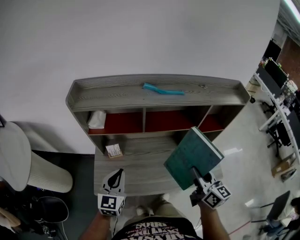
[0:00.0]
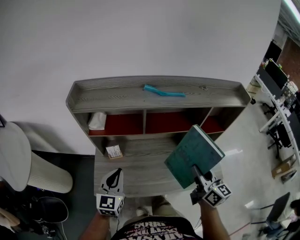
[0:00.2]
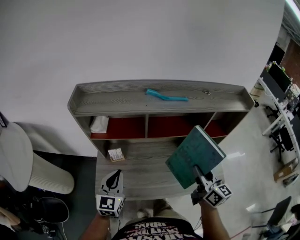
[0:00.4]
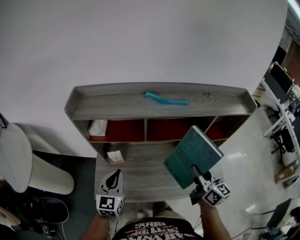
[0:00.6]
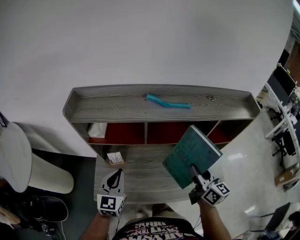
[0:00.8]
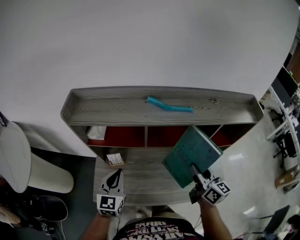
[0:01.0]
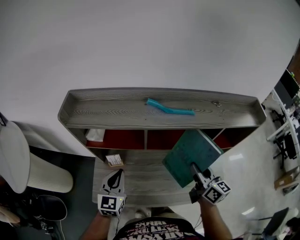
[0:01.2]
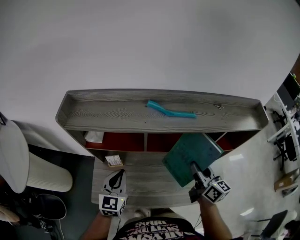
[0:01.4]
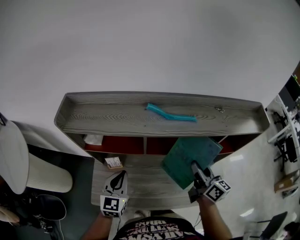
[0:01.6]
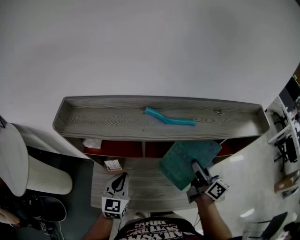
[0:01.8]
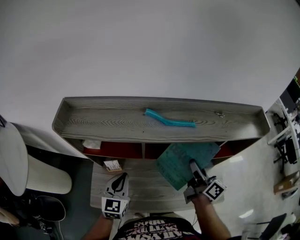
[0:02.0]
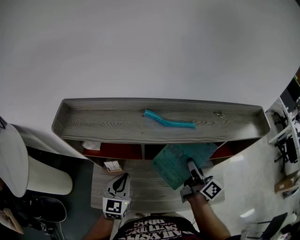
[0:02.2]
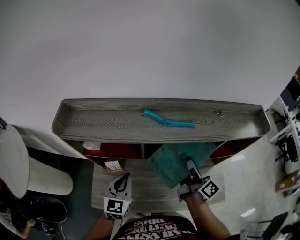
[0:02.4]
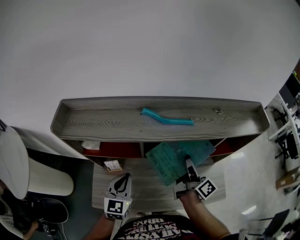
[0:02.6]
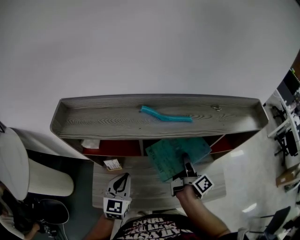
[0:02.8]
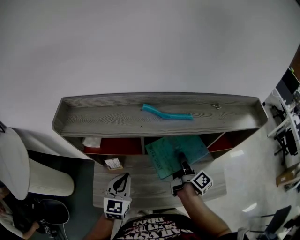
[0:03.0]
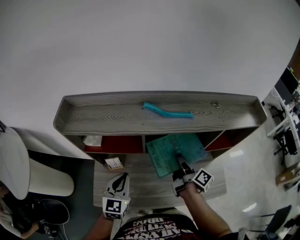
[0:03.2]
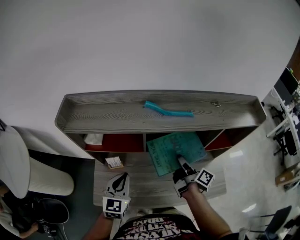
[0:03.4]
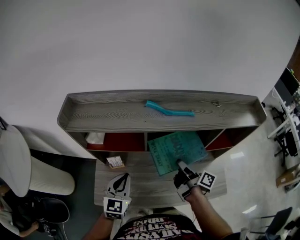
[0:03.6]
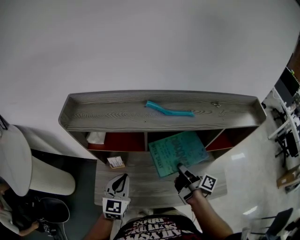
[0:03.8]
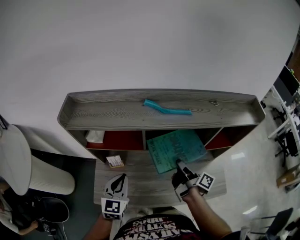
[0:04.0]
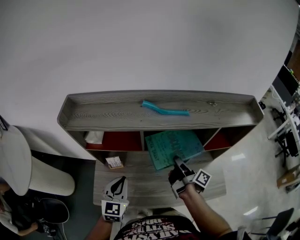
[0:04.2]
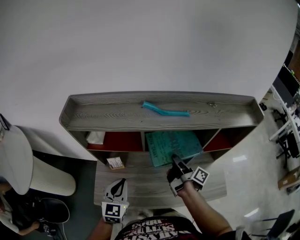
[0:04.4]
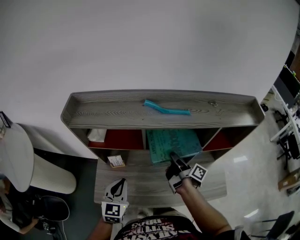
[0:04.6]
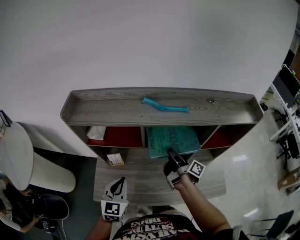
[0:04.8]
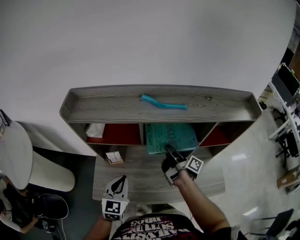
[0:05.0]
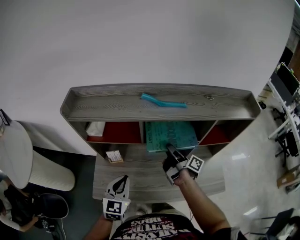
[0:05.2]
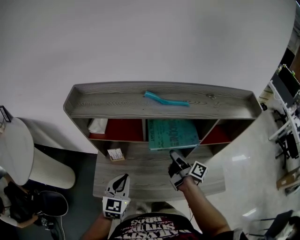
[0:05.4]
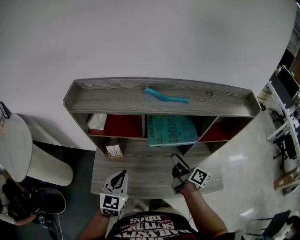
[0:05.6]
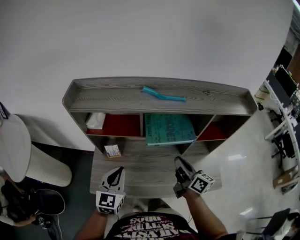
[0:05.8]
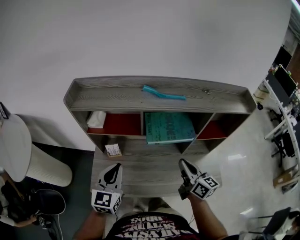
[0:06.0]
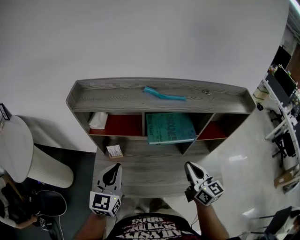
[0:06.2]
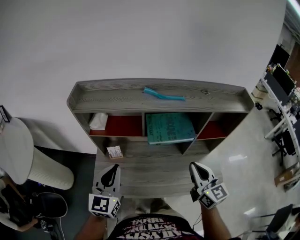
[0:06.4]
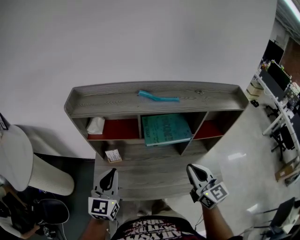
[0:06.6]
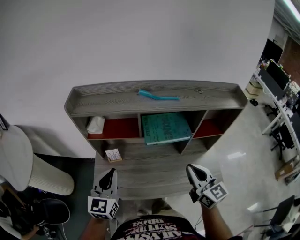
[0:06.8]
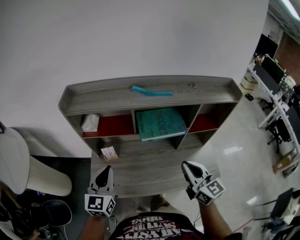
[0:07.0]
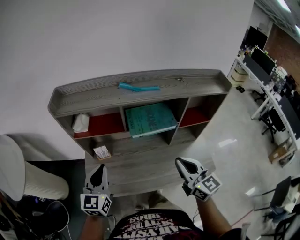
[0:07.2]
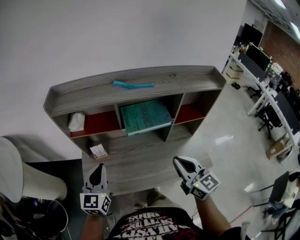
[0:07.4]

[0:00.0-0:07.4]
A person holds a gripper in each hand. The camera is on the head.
0:00.0 to 0:01.4: The left gripper heads forward, covering some 10 cm; the right gripper heads forward, covering about 15 cm.
0:01.4 to 0:03.0: The right gripper moves downward, some 5 cm, and twists about 40 degrees clockwise, seen from behind.
0:03.0 to 0:04.4: The right gripper turns by some 20 degrees.
0:04.4 to 0:06.0: The left gripper shifts approximately 5 cm upward, while the right gripper goes about 15 cm backward and upward, rotates around the line of its fingers by approximately 60 degrees, counterclockwise from behind, and closes.
0:06.0 to 0:07.4: The right gripper goes roughly 10 cm backward and upward, and turns by roughly 20 degrees.

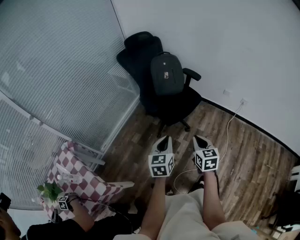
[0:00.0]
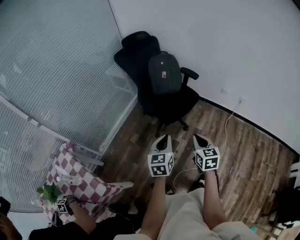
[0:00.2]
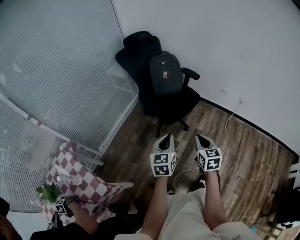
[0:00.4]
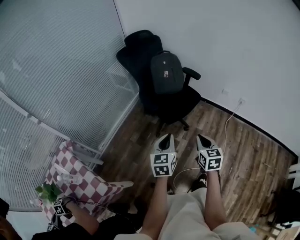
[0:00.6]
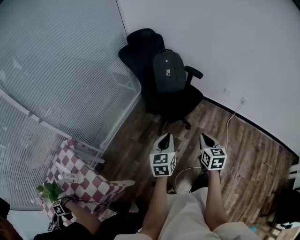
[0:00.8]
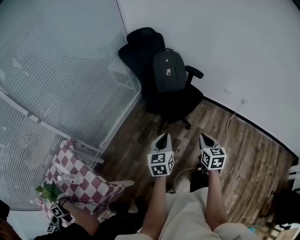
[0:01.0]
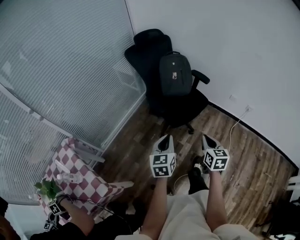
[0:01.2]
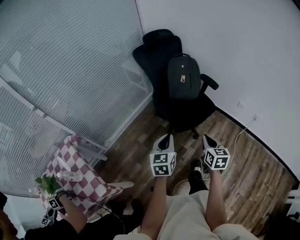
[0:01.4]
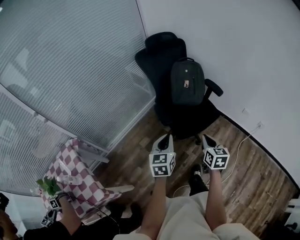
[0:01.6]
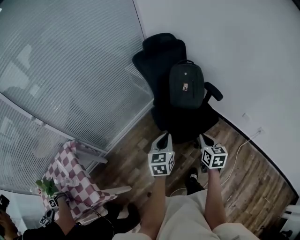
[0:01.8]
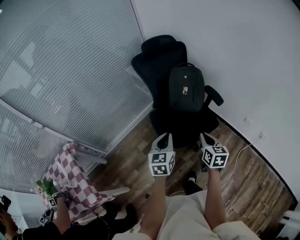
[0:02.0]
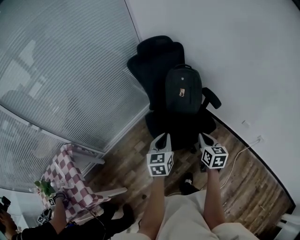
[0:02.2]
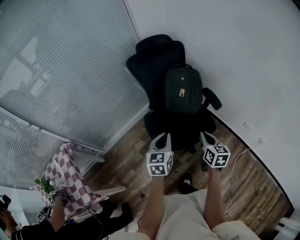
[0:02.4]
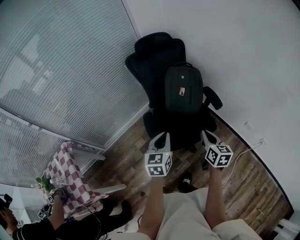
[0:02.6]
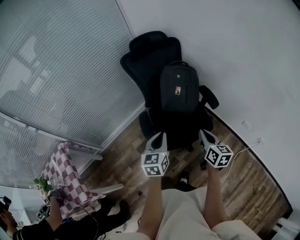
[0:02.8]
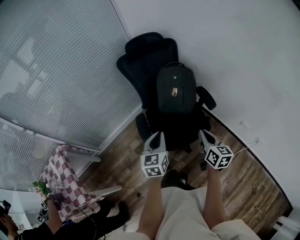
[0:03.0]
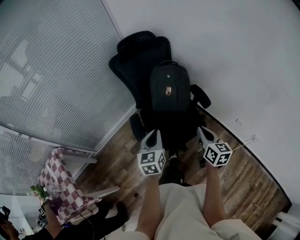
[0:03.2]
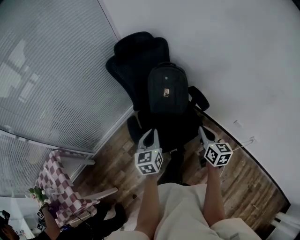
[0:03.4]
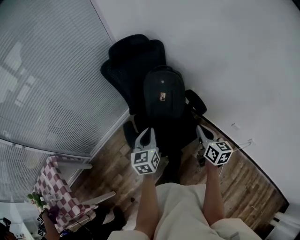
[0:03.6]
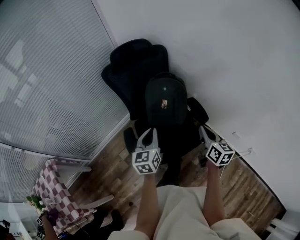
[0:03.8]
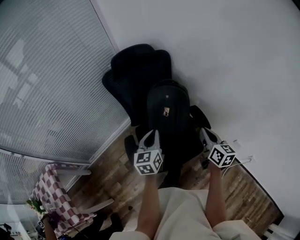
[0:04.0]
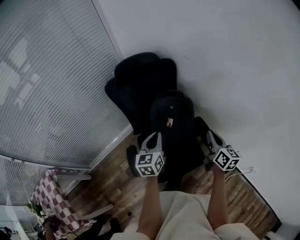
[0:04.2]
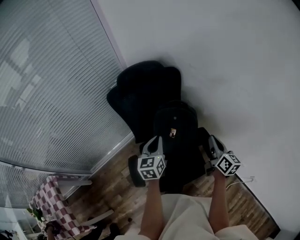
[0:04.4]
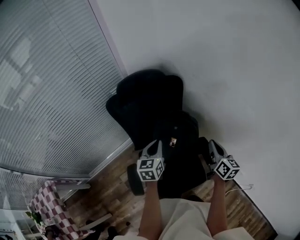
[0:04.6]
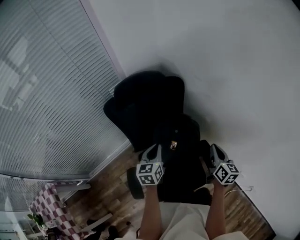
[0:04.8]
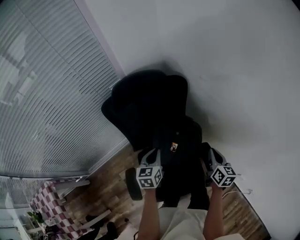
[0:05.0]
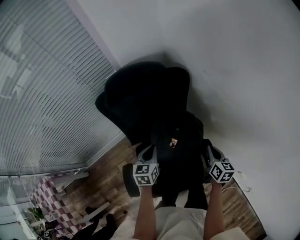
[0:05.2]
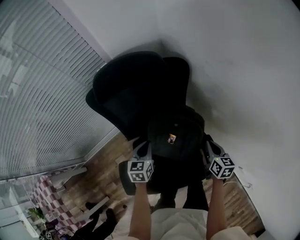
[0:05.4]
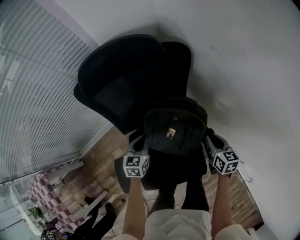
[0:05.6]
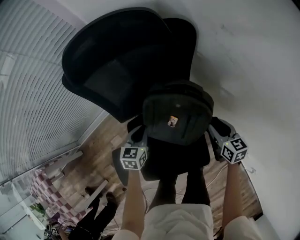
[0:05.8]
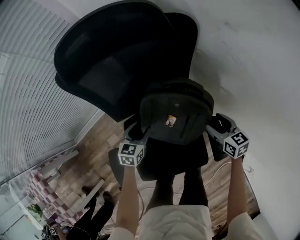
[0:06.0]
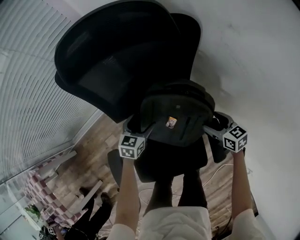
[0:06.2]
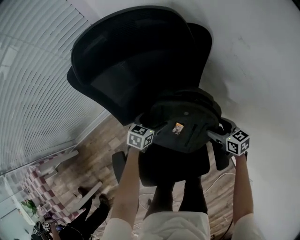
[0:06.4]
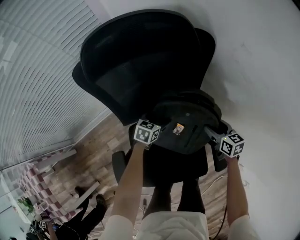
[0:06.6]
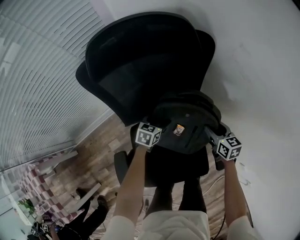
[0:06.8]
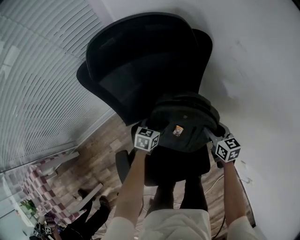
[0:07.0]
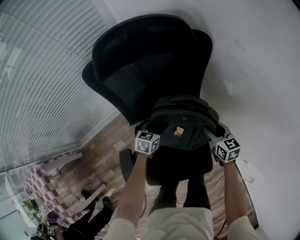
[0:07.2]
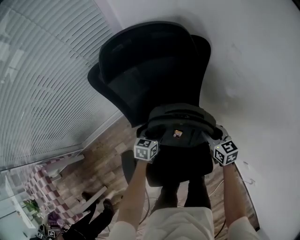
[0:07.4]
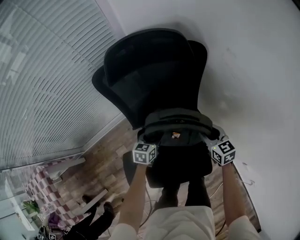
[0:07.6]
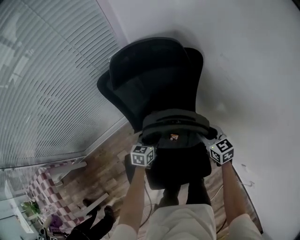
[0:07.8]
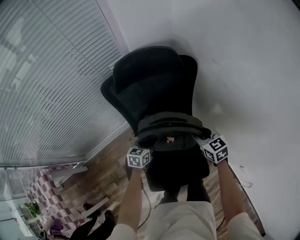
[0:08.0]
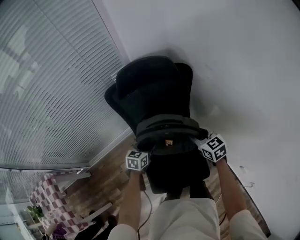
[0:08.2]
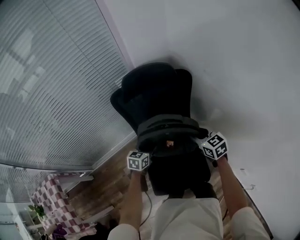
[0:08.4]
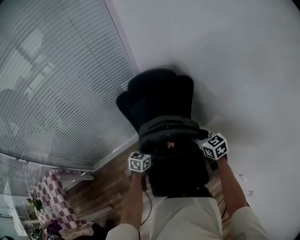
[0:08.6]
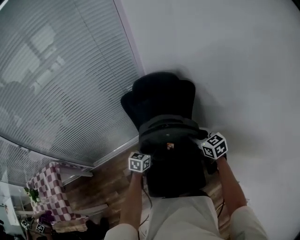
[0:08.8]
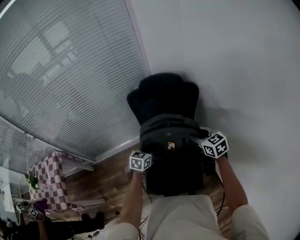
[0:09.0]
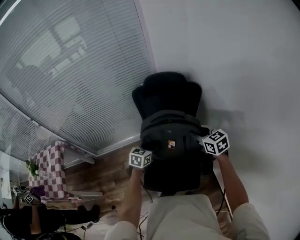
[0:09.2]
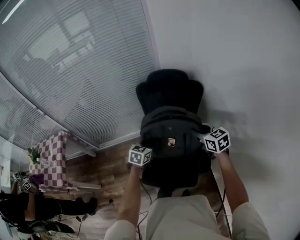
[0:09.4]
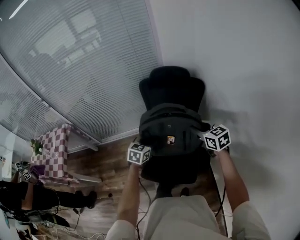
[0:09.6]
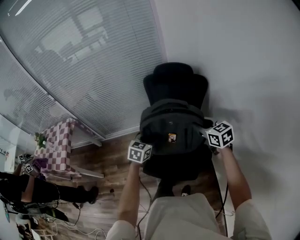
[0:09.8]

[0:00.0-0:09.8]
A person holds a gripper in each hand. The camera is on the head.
0:00.0 to 0:01.4: The right gripper travels forward by approximately 10 cm. Meanwhile the left gripper heads forward and to the left, covering some 10 cm.
0:01.4 to 0:02.8: Both grippers move forward and to the right, some 30 cm. The right gripper rotates roughly 20 degrees.
0:02.8 to 0:04.2: The right gripper heads forward and to the right, covering roughly 30 cm. Meanwhile the left gripper is displaced forward by some 30 cm.
0:04.2 to 0:05.6: Both grippers travel together downward and forward, some 30 cm. The left gripper swivels about 20 degrees, while the right gripper swivels approximately 30 degrees.
0:05.6 to 0:07.0: The right gripper is displaced to the left by about 5 cm, and opens, then closes again. Meanwhile the left gripper shifts some 10 cm downward, and opens up.
0:07.0 to 0:08.4: The left gripper shifts some 25 cm upward and backward. Meanwhile the right gripper goes some 25 cm upward, and changes its angle by some 20 degrees.
0:08.4 to 0:09.8: The right gripper travels upward and backward by about 20 cm, and turns by approximately 20 degrees; the left gripper shifts roughly 25 cm backward and upward, and turns by about 20 degrees.

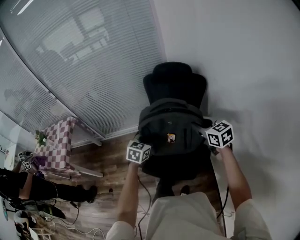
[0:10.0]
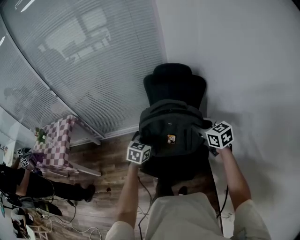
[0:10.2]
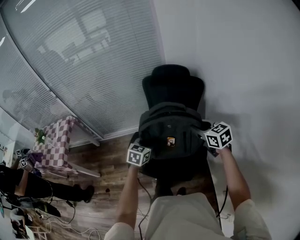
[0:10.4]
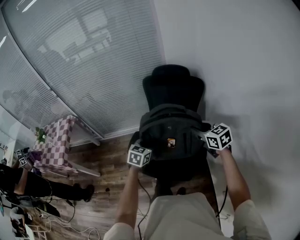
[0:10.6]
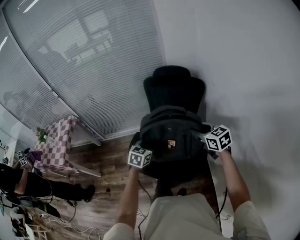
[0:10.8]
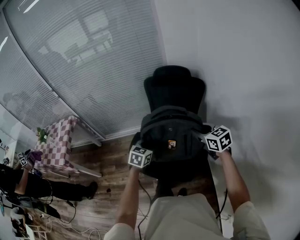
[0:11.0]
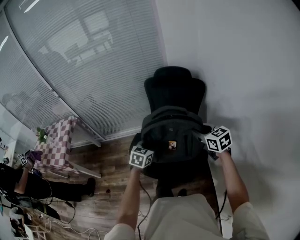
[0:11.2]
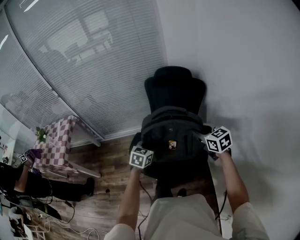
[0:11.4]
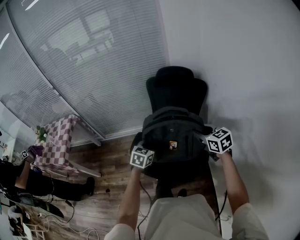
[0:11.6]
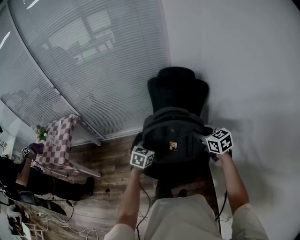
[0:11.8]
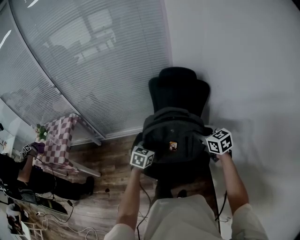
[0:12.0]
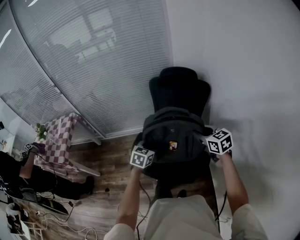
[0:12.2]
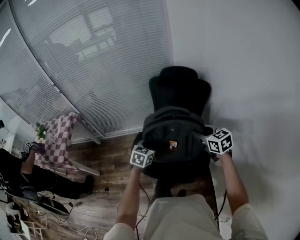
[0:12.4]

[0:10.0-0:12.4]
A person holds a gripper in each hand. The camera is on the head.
0:10.0 to 0:12.4: The grippers make only small movements.

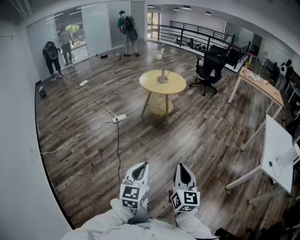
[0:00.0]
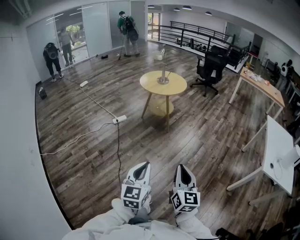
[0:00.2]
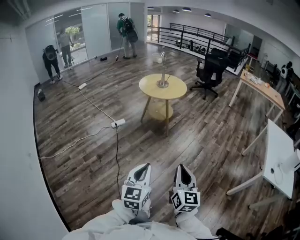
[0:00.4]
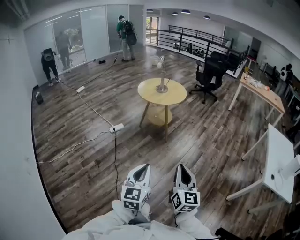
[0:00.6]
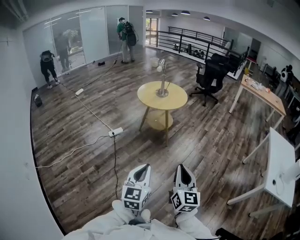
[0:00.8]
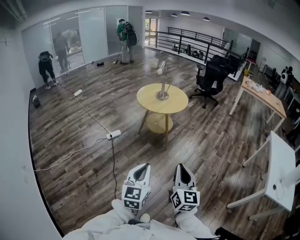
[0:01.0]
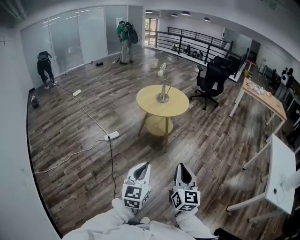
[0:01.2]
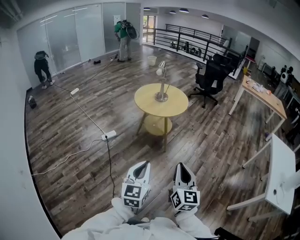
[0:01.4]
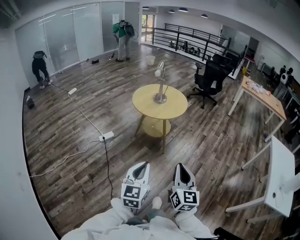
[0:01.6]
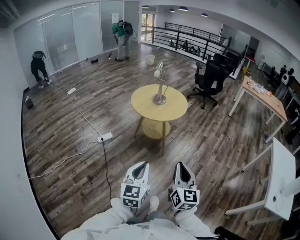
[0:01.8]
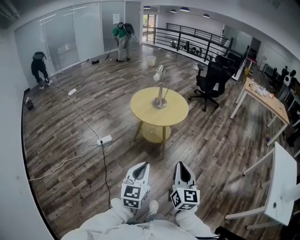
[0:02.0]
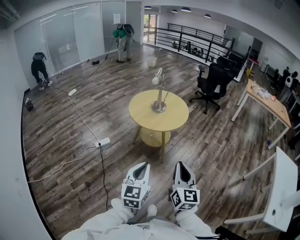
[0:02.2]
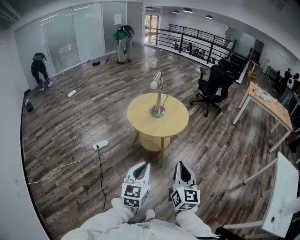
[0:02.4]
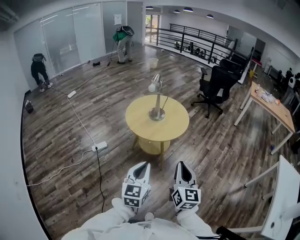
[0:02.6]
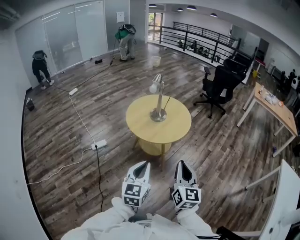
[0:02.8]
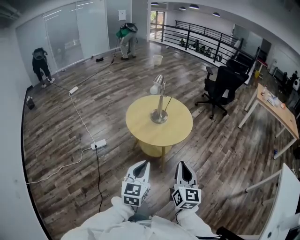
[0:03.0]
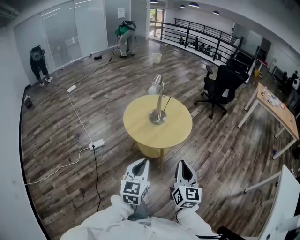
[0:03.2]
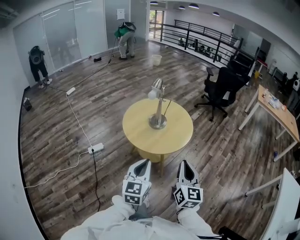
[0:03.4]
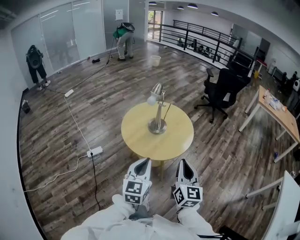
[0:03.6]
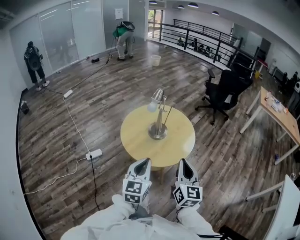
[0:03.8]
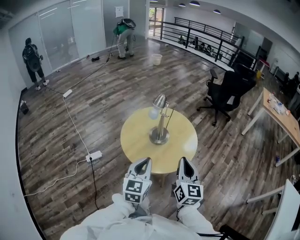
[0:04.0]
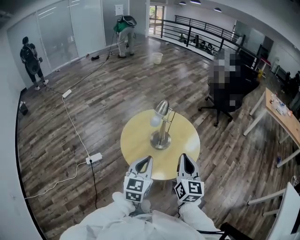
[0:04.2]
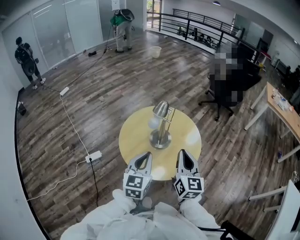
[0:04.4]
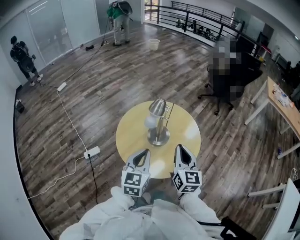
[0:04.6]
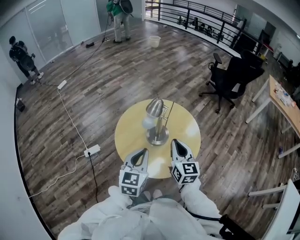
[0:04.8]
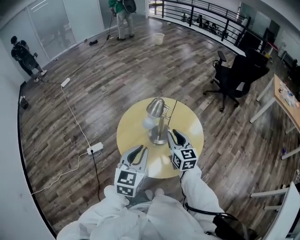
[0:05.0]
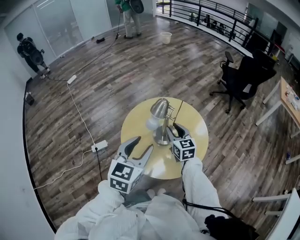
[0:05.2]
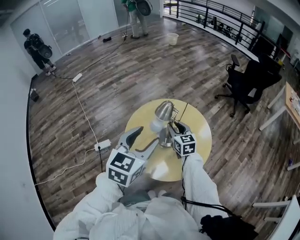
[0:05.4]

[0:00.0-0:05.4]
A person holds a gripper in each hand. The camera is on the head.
0:00.0 to 0:01.4: The two grippers go roughly 35 cm forward.
0:01.4 to 0:02.8: Both grippers move forward, about 35 cm.
0:02.8 to 0:04.0: The grippers both shift forward by roughly 30 cm.
0:04.0 to 0:05.4: The right gripper moves forward, about 30 cm, turns by approximately 30 degrees, and opens, while the left gripper goes some 20 cm forward and upward, and opens up.
